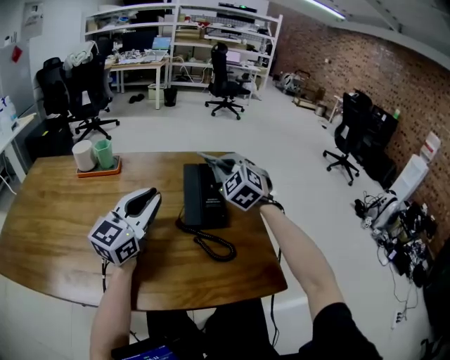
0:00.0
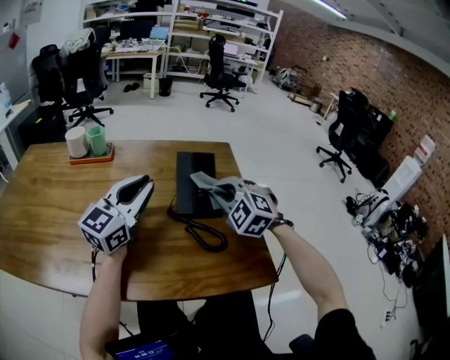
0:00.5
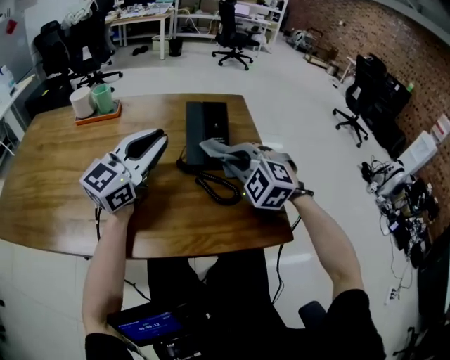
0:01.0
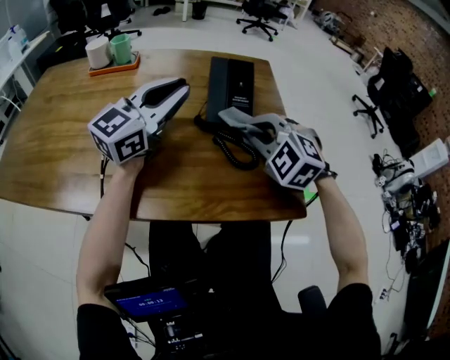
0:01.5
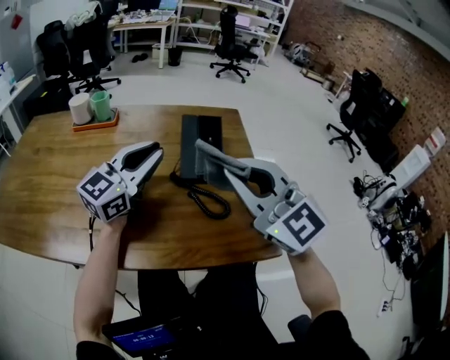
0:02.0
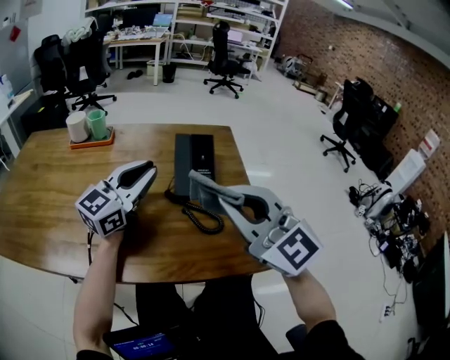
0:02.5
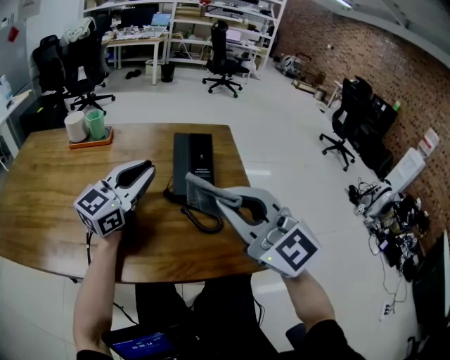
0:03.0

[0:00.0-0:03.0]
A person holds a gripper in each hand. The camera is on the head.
0:00.0 to 0:01.5: The right gripper is displaced backward and downward by approximately 20 cm, and swivels roughly 20 degrees.
0:01.5 to 0:03.0: The right gripper travels upward and backward by about 20 cm, and tilts its fingers some 40 degrees upward.

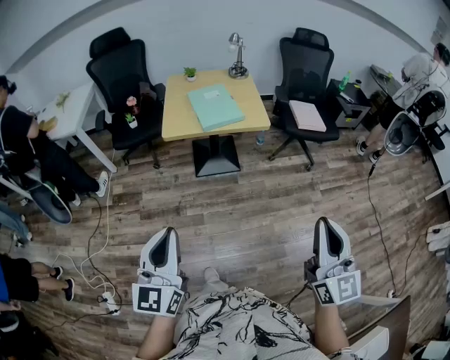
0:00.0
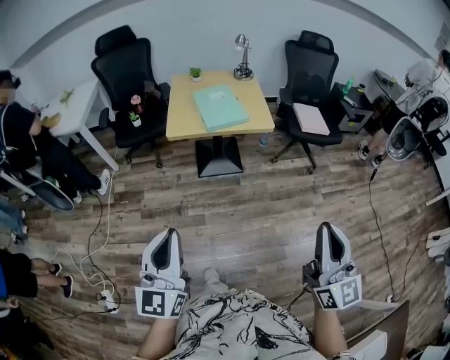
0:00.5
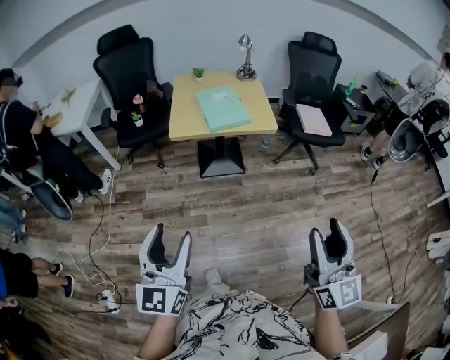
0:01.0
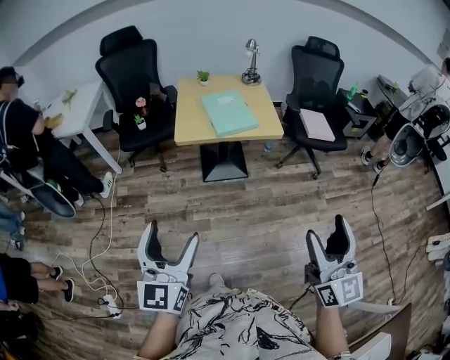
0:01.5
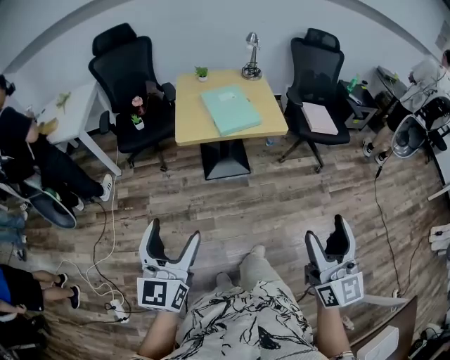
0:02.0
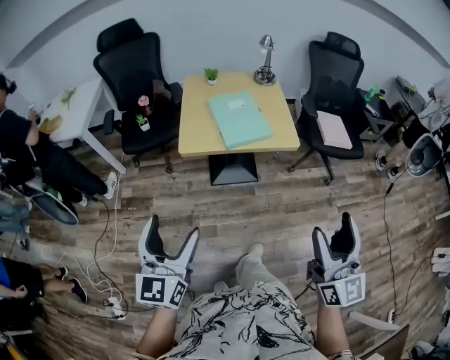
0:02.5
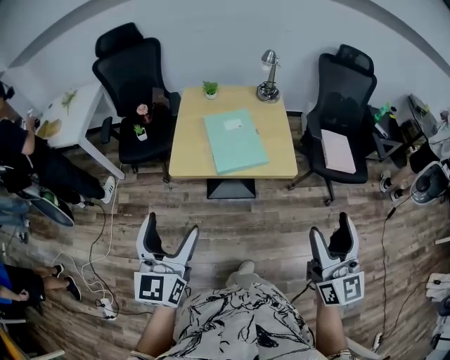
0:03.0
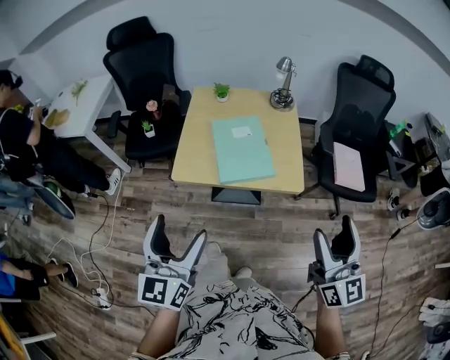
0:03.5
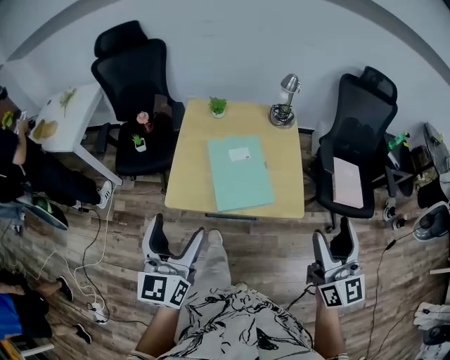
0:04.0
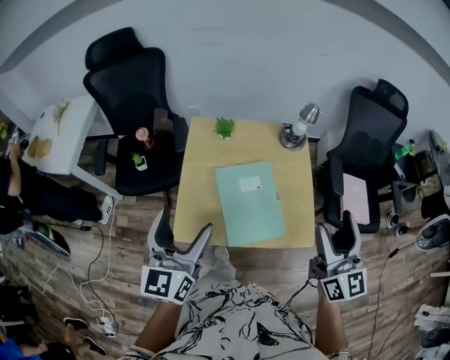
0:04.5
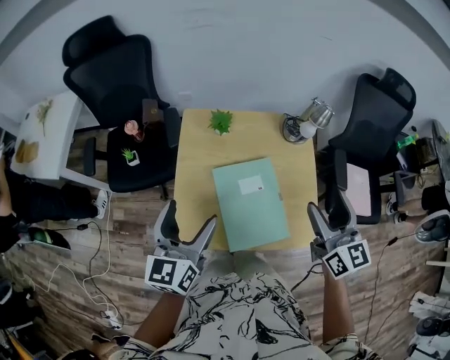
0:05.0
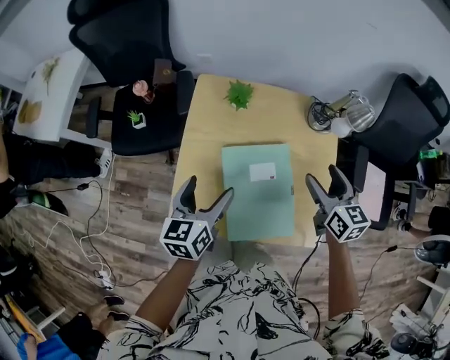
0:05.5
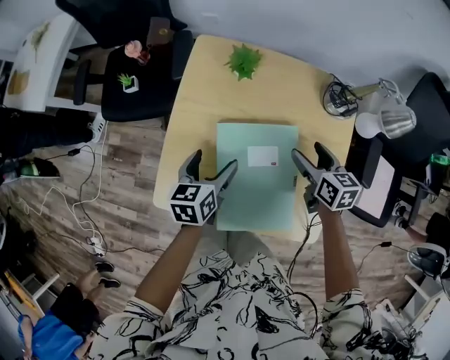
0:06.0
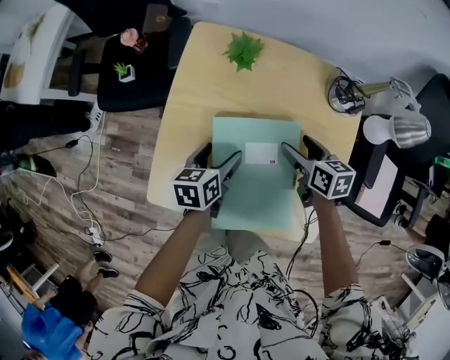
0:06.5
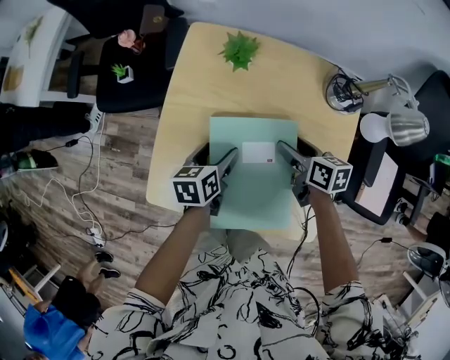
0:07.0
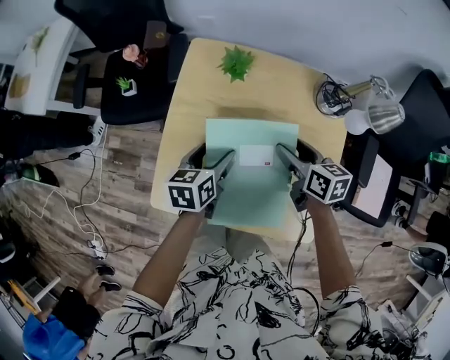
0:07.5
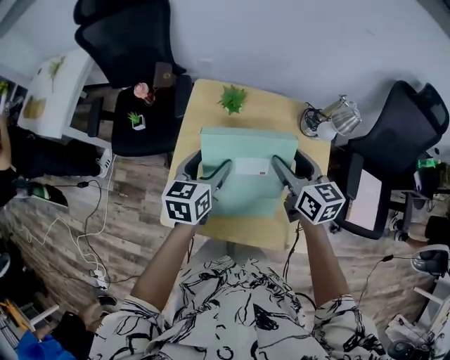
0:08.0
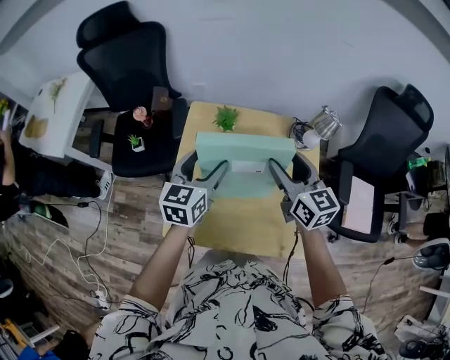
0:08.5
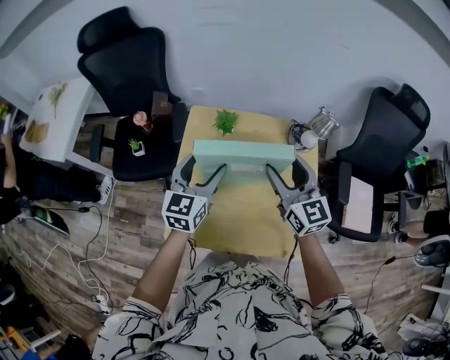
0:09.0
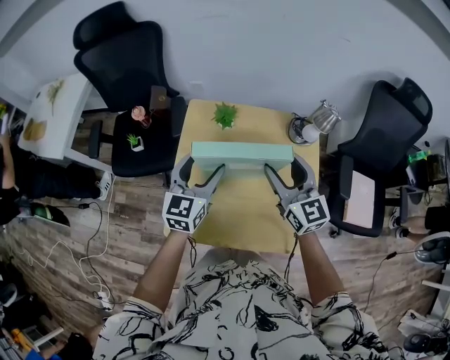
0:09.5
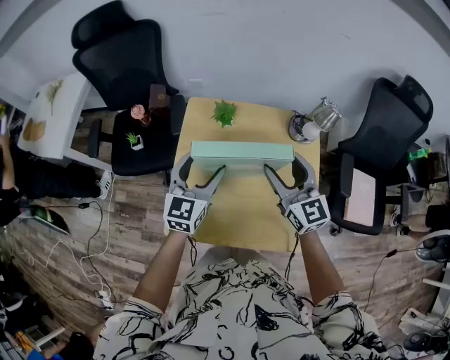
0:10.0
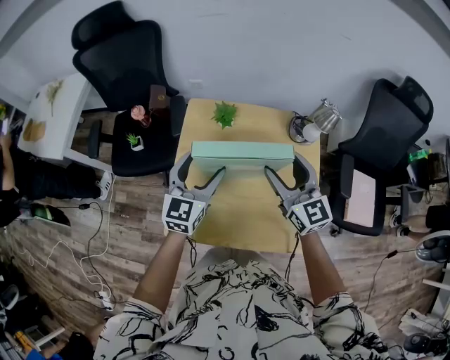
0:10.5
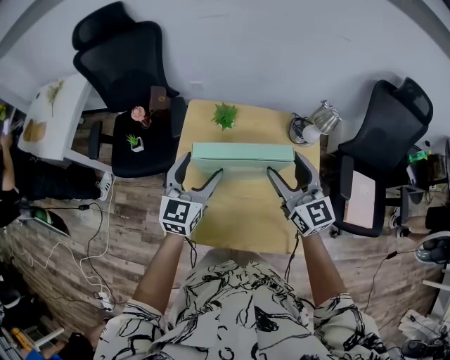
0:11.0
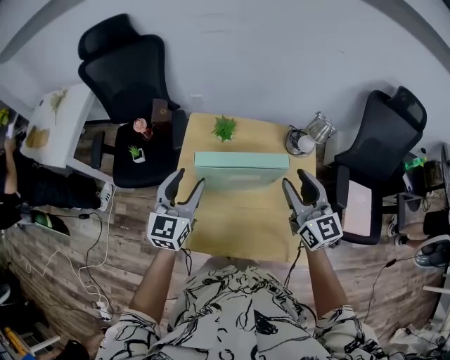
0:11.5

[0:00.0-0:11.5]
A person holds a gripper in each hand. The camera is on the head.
0:00.0 to 0:02.0: The right gripper moves to the left, some 10 cm, and opens up; the left gripper shifts some 10 cm to the left and forward, and opens.
0:02.0 to 0:04.0: The two grippers travel together, forward, about 40 cm.
0:04.0 to 0:06.0: Both grippers move forward and downward, some 50 cm. The left gripper angles its fingers downward, by about 30 degrees. Meanwhile the right gripper tips its fingers downward by roughly 40 degrees.
0:07.5 to 0:09.5: Both grippers move upward, approximately 20 cm. The right gripper rotates approximately 50 degrees. Meanwhile the left gripper changes its angle by approximately 40 degrees.
0:09.5 to 0:11.5: The right gripper moves some 5 cm. Meanwhile the left gripper ends up approximately 5 cm from where it was.

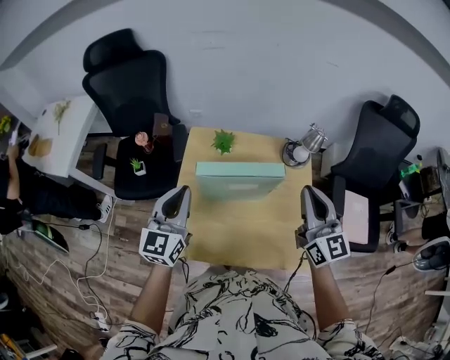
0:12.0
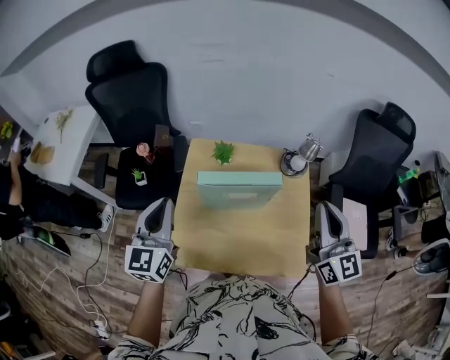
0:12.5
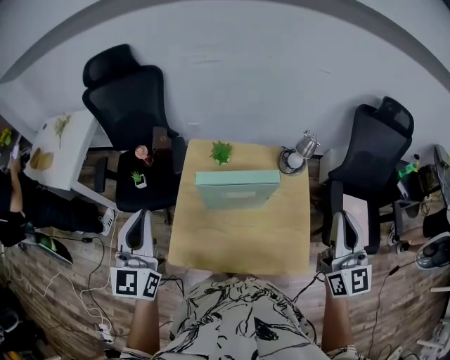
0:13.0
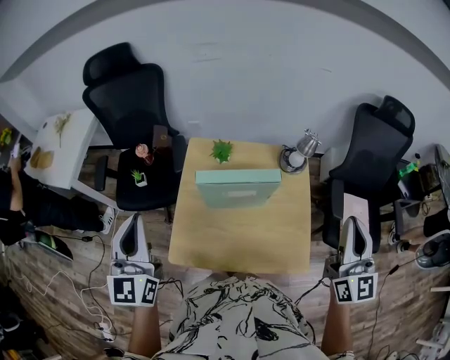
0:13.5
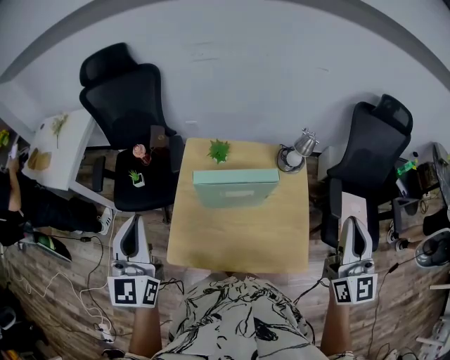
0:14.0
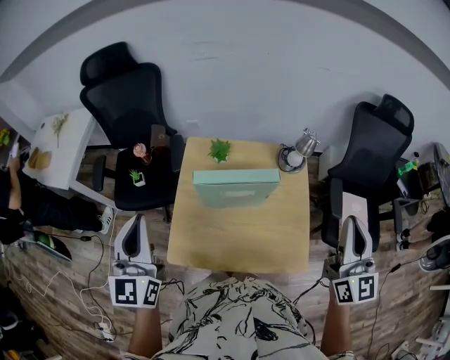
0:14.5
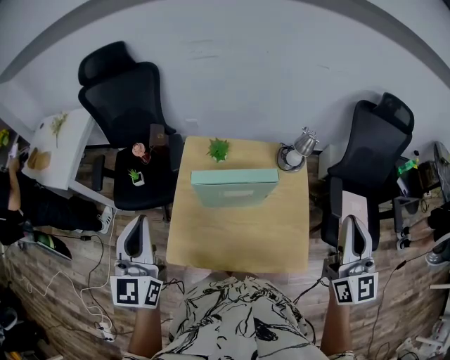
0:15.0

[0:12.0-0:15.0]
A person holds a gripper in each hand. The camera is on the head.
0:12.0 to 0:13.5: The right gripper heads backward, to the right and upward, covering about 15 cm; the left gripper shifts approximately 15 cm upward, to the left and backward.
0:13.5 to 0:15.0: The grippers make only small movements.

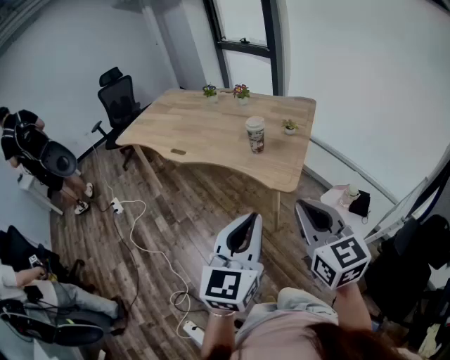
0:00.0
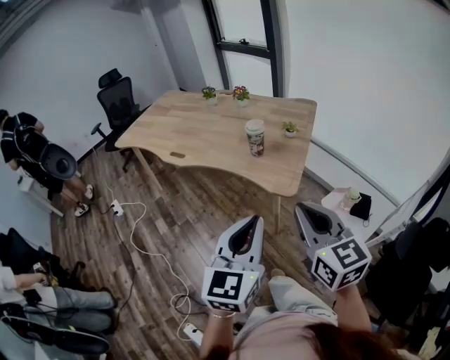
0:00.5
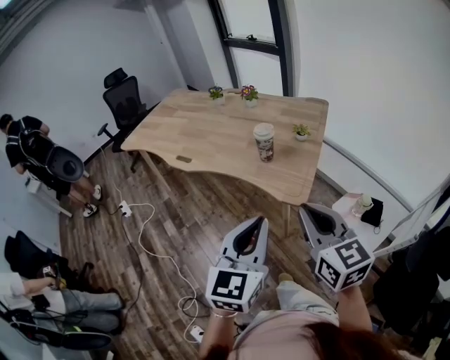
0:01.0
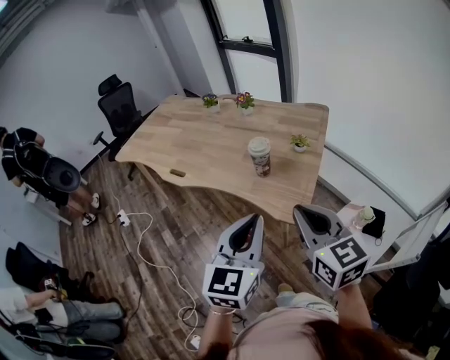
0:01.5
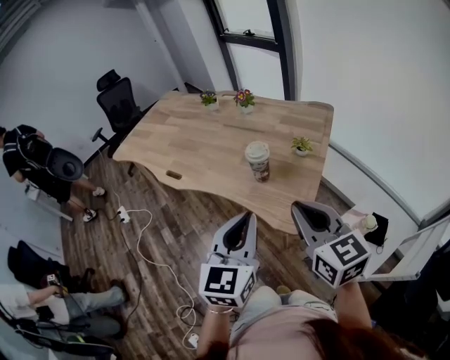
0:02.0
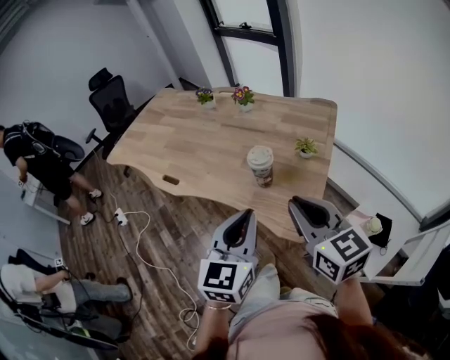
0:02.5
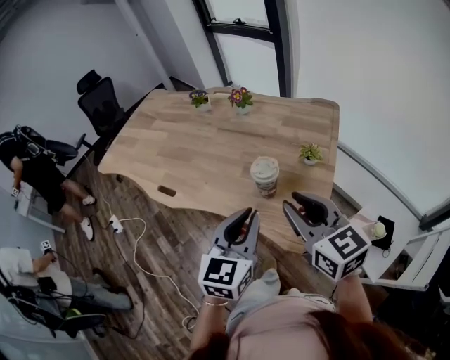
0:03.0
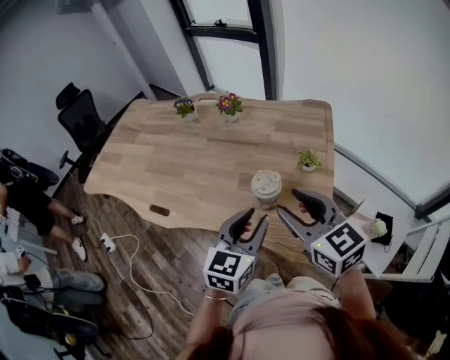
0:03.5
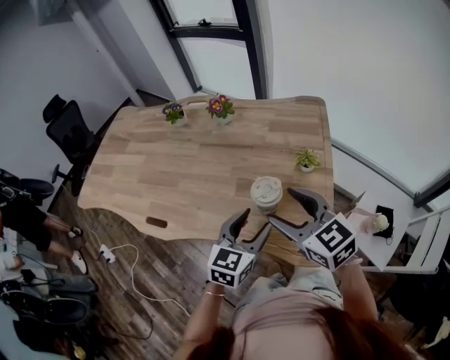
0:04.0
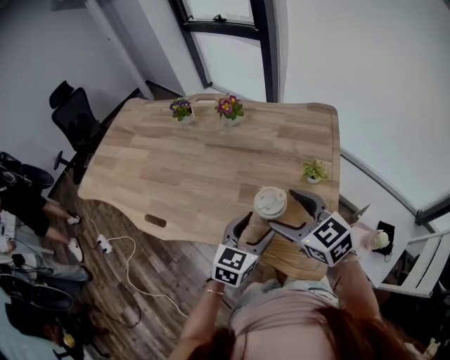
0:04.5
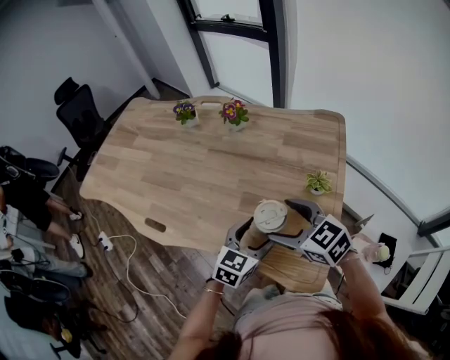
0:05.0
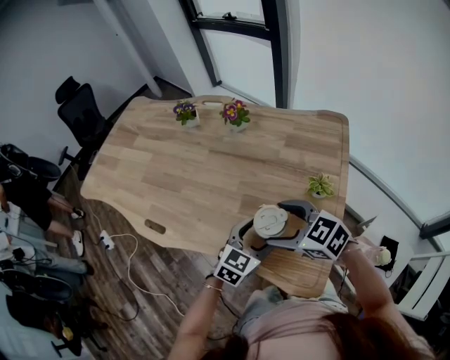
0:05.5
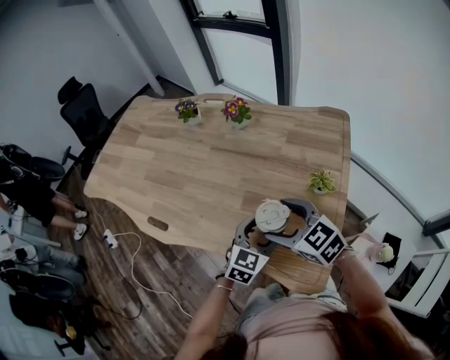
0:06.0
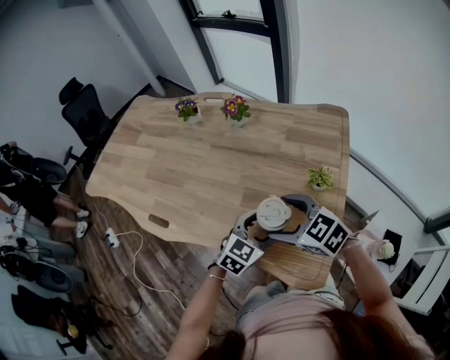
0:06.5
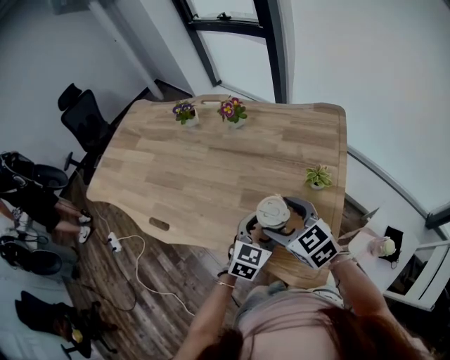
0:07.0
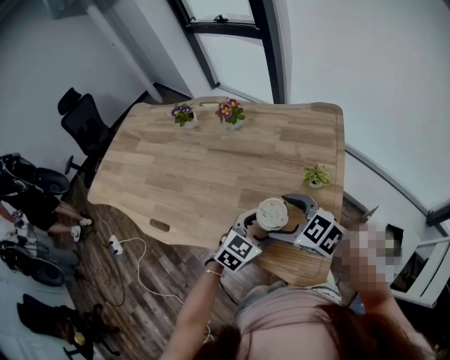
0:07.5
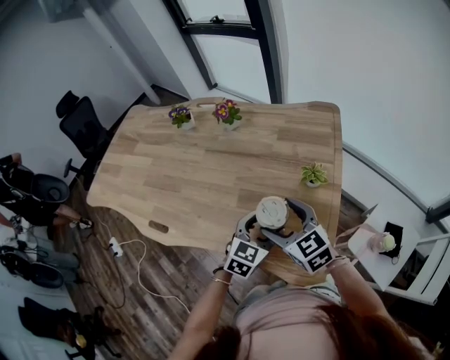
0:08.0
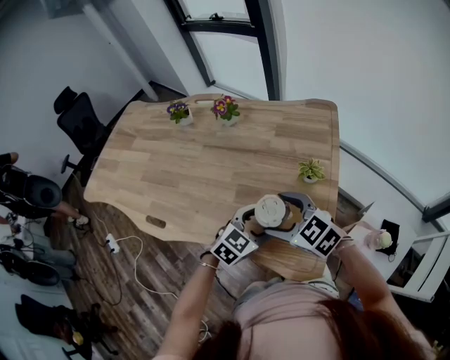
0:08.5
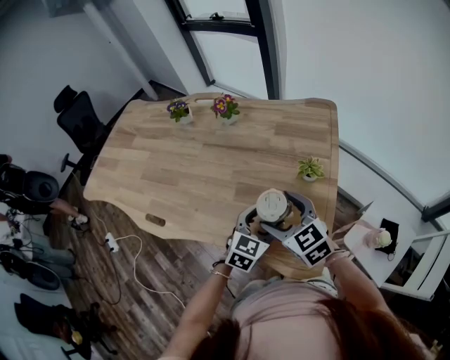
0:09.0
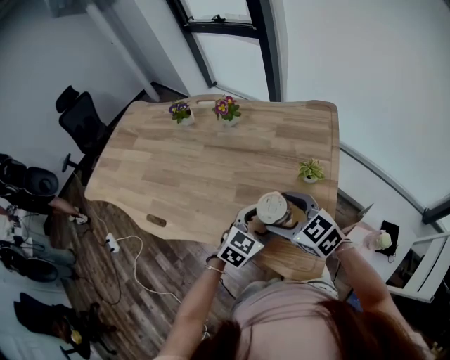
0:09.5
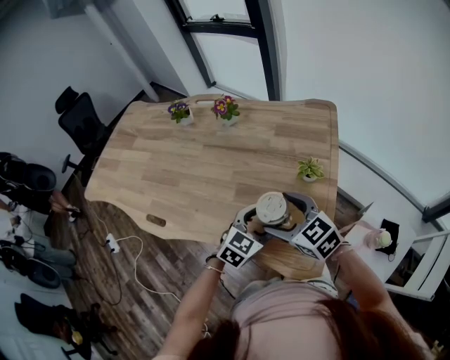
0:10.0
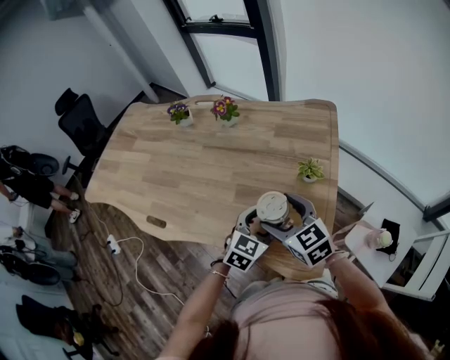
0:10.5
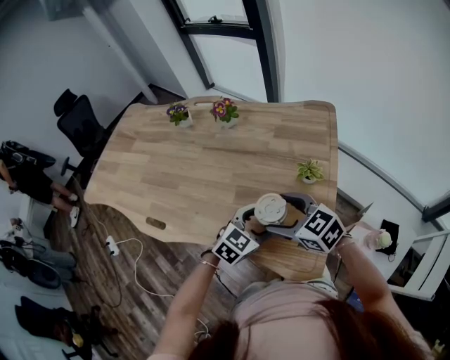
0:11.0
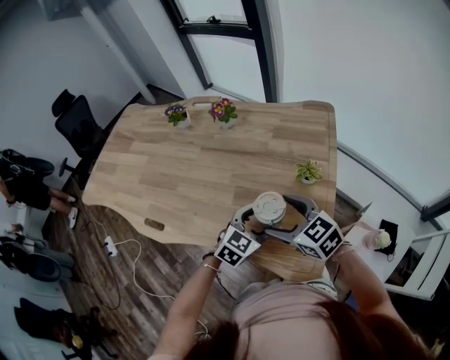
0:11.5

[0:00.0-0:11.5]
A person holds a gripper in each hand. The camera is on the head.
0:00.0 to 0:02.0: Both grippers travel together forward, roughly 25 cm.
0:02.0 to 0:04.0: The right gripper moves forward, approximately 20 cm, and opens its fingers. The left gripper travels forward and downward by approximately 30 cm, rotates approximately 30 degrees, and opens its fingers.
0:04.0 to 0:06.0: Both grippers travel together downward and forward, some 10 cm. The right gripper turns by approximately 20 degrees.
0:06.0 to 0:07.5: The grippers make only small movements.
0:09.5 to 0:11.5: The grippers stay close to where they were, moving slightly.
